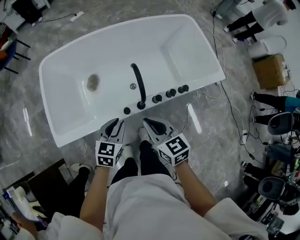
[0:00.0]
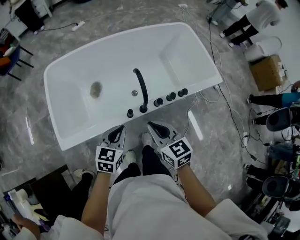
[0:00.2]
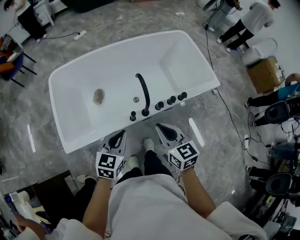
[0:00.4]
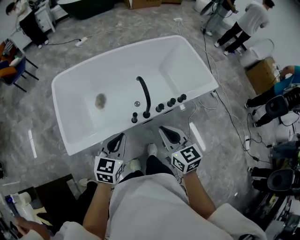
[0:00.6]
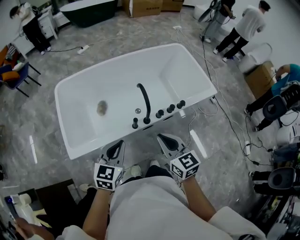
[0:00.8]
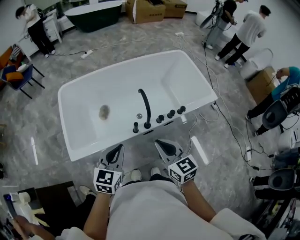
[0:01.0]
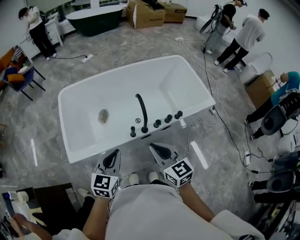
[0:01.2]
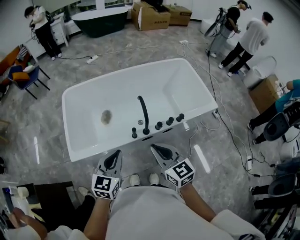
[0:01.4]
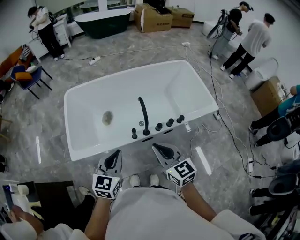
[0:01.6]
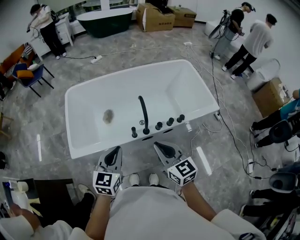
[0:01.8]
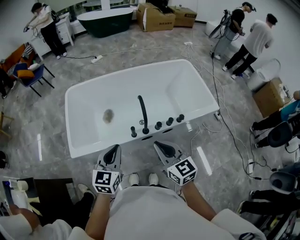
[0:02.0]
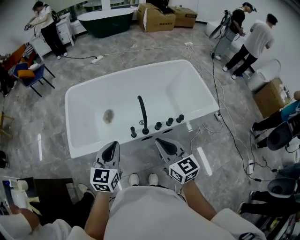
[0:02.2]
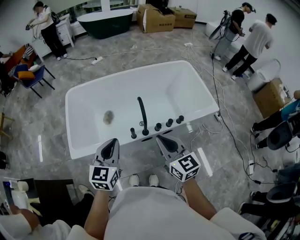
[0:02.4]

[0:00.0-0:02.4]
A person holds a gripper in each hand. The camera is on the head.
0:00.0 to 0:01.2: Both grippers travel together upward and backward, approximately 20 cm.
0:01.2 to 0:02.4: The left gripper travels upward by approximately 5 cm; the right gripper goes some 5 cm to the right.

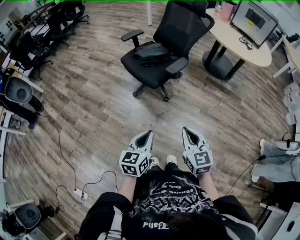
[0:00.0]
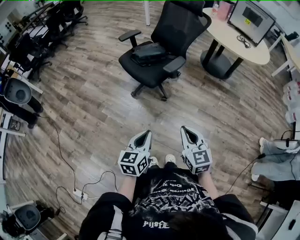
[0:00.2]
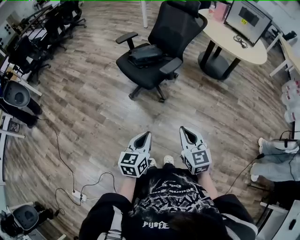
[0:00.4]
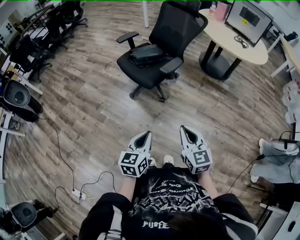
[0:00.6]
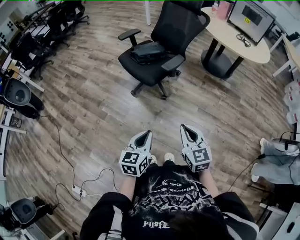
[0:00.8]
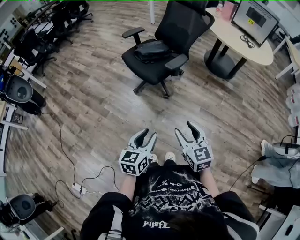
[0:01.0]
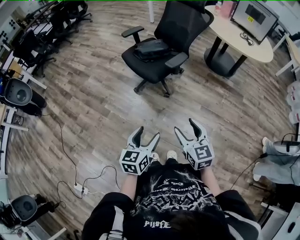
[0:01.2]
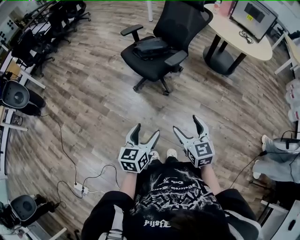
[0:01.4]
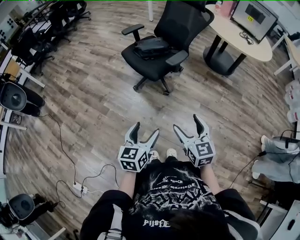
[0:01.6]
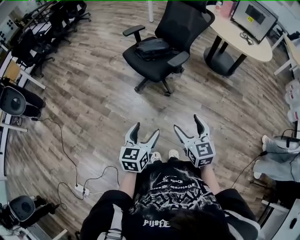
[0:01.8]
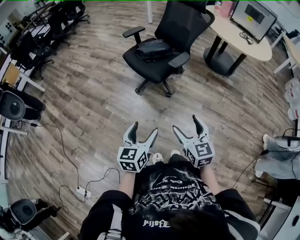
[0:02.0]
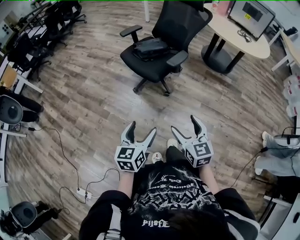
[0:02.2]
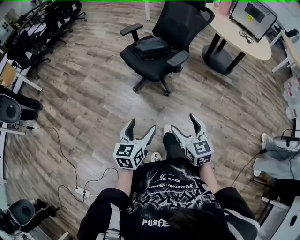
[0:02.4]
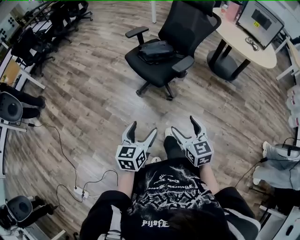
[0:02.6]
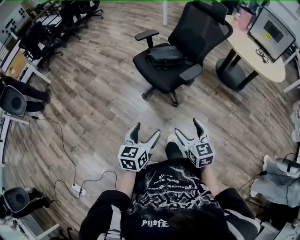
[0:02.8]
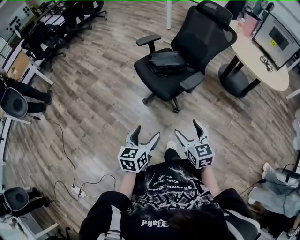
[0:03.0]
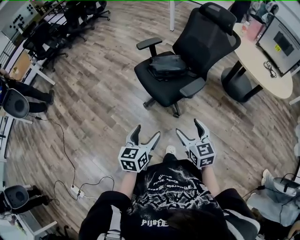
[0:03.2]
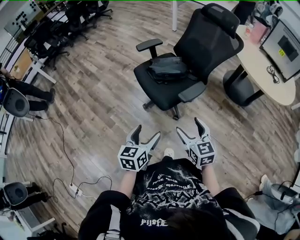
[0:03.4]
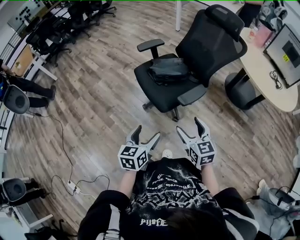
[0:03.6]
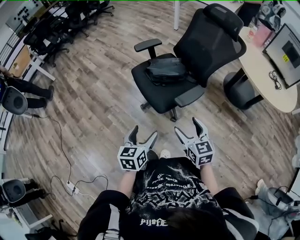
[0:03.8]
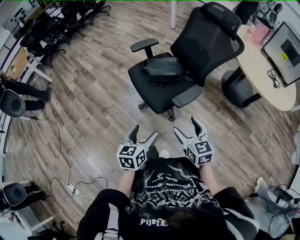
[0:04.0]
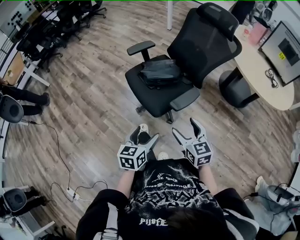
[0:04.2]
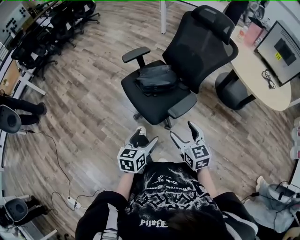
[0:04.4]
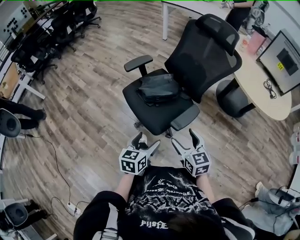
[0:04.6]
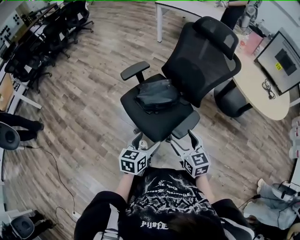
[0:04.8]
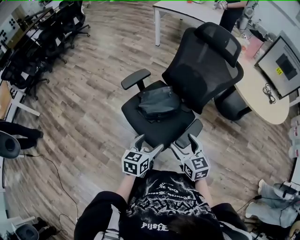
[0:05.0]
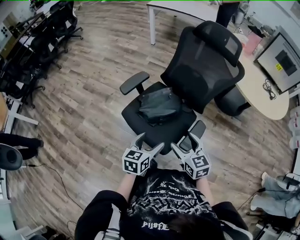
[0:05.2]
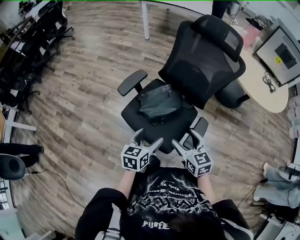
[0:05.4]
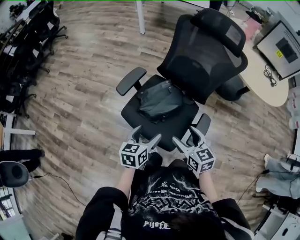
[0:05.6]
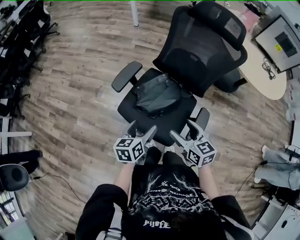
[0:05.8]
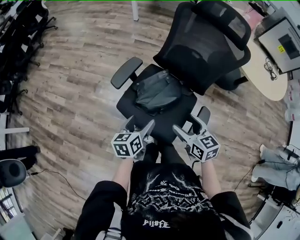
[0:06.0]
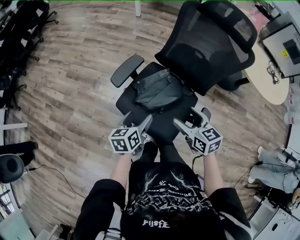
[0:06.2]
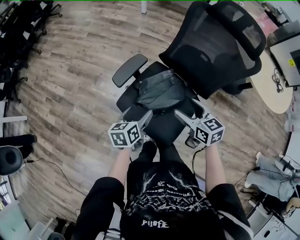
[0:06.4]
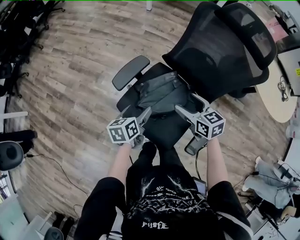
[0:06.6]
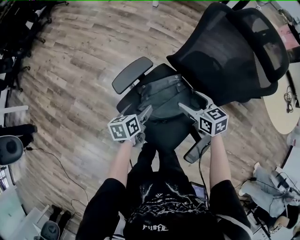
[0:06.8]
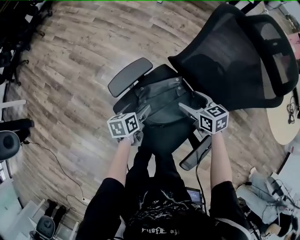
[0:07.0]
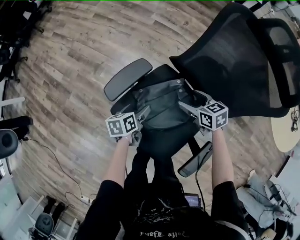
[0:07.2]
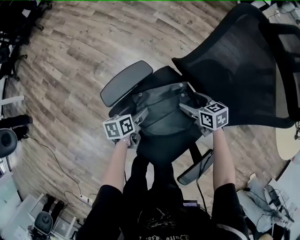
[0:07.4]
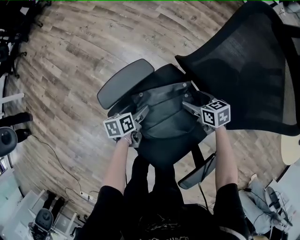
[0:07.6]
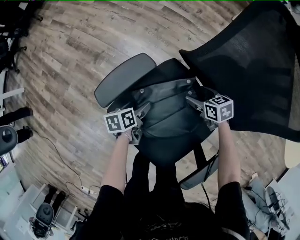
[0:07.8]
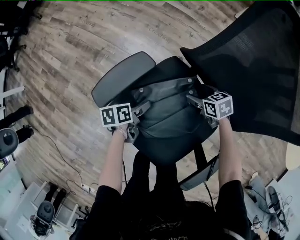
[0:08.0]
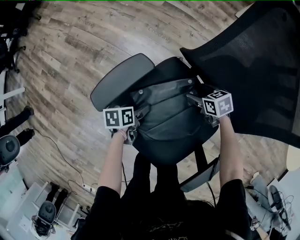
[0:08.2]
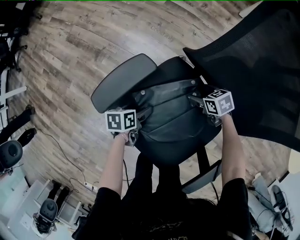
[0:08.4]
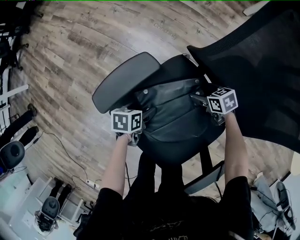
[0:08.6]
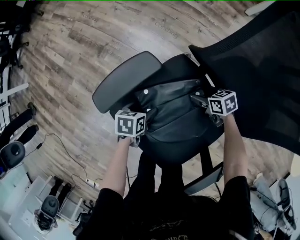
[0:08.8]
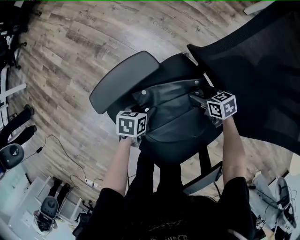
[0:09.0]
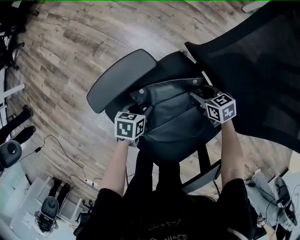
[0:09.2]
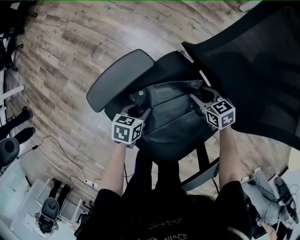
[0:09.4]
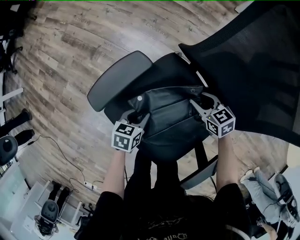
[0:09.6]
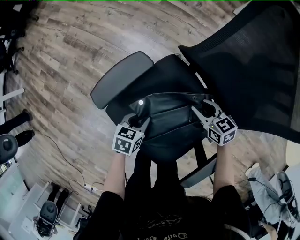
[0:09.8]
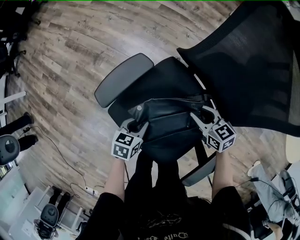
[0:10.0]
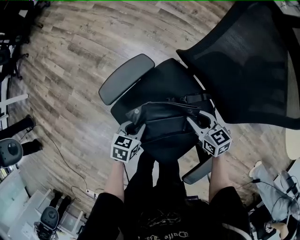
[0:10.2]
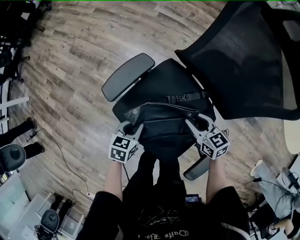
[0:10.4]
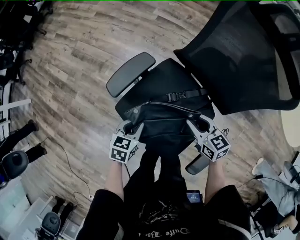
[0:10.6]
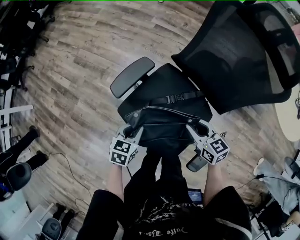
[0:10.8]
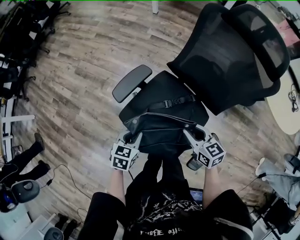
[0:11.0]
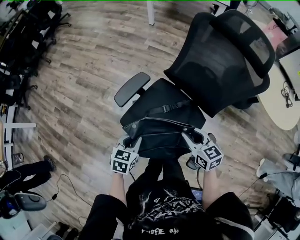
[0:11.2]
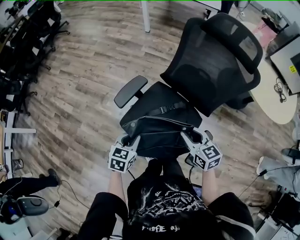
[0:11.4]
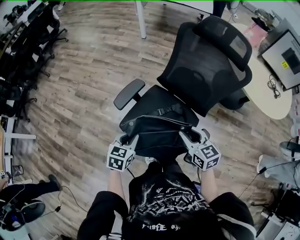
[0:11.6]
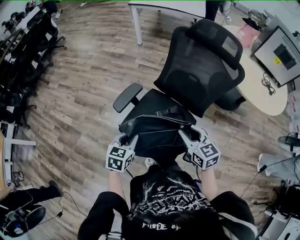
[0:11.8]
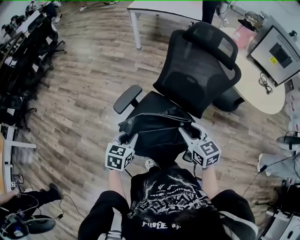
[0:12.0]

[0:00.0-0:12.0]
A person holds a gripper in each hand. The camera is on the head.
0:00.0 to 0:01.6: The right gripper opens its fingers; the left gripper opens up.
0:01.6 to 0:03.0: The two grippers go approximately 20 cm forward.
0:03.0 to 0:04.4: The left gripper shifts about 25 cm forward and to the right. The right gripper heads forward, covering approximately 20 cm.
0:04.4 to 0:06.0: The two grippers go about 35 cm forward and to the left. The right gripper turns by some 20 degrees.
0:06.0 to 0:07.6: Both grippers move downward and forward, roughly 40 cm. The left gripper changes its angle by roughly 30 degrees. Meanwhile the right gripper changes its angle by roughly 40 degrees.
0:07.6 to 0:09.0: The right gripper moves downward, approximately 15 cm, while the left gripper moves downward, about 10 cm, and rotates approximately 30 degrees.
0:09.0 to 0:10.4: The two grippers go approximately 20 cm upward. The left gripper changes its angle by about 30 degrees, and closes its fingers. The right gripper swivels some 30 degrees.
0:10.4 to 0:12.0: The left gripper travels upward by roughly 30 cm, and turns by about 20 degrees; the right gripper moves upward and backward, about 35 cm, and turns by some 30 degrees.

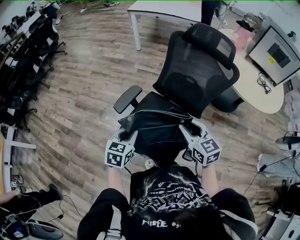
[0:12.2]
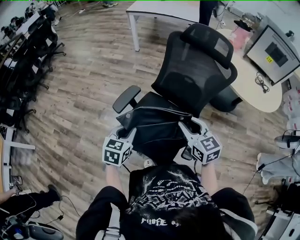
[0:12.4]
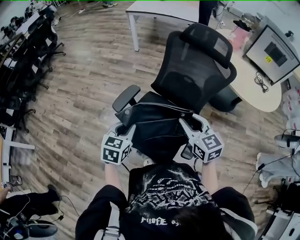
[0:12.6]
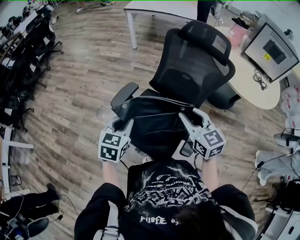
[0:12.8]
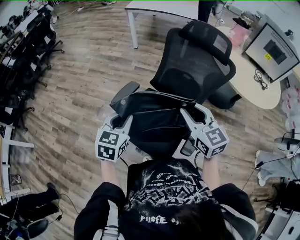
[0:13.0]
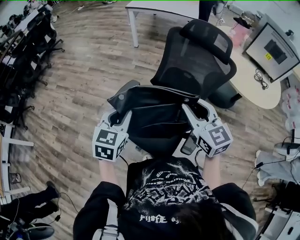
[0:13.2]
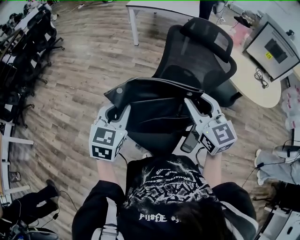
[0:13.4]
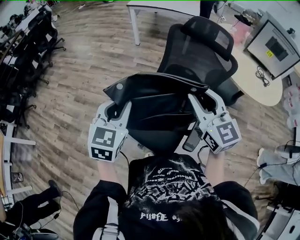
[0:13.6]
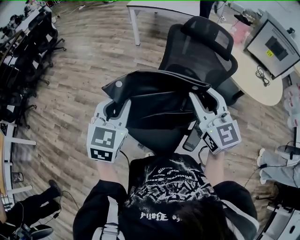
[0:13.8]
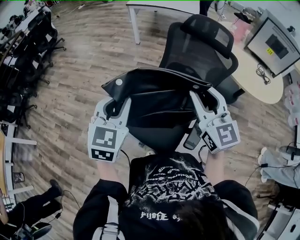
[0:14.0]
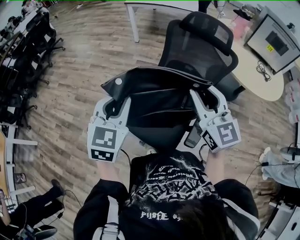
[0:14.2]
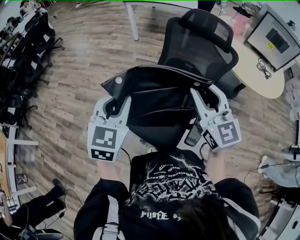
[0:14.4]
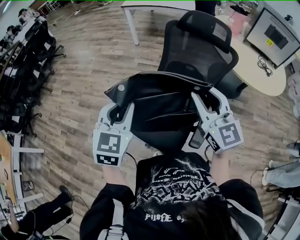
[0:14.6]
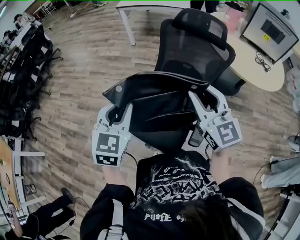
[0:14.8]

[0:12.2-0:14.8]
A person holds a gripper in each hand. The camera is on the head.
0:12.2 to 0:13.4: The grippers both shift upward by some 15 cm.
0:13.4 to 0:14.8: The grippers make only small movements.

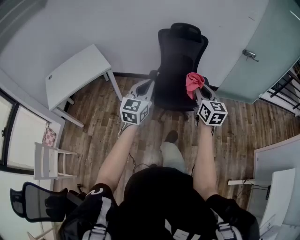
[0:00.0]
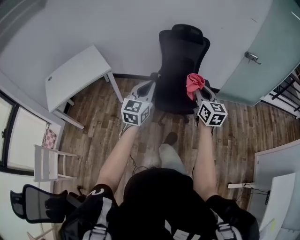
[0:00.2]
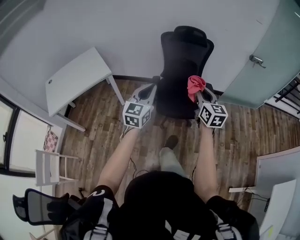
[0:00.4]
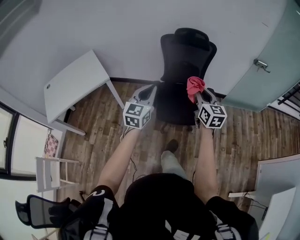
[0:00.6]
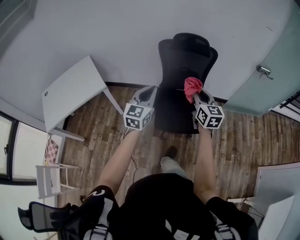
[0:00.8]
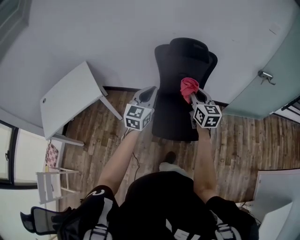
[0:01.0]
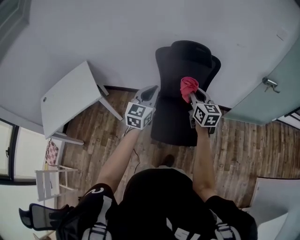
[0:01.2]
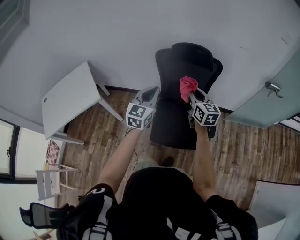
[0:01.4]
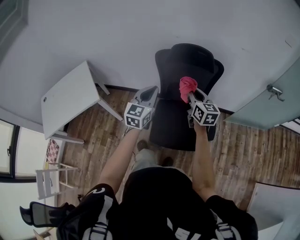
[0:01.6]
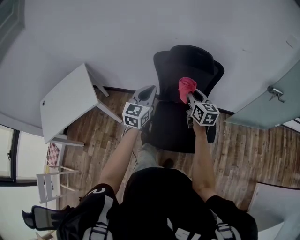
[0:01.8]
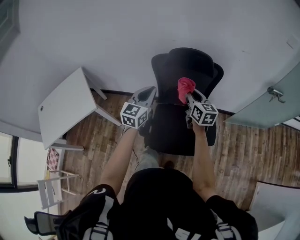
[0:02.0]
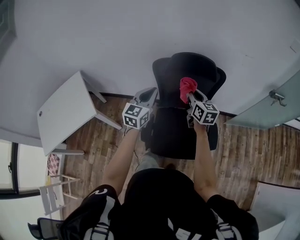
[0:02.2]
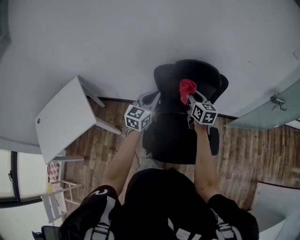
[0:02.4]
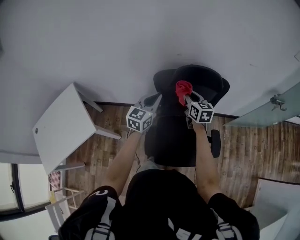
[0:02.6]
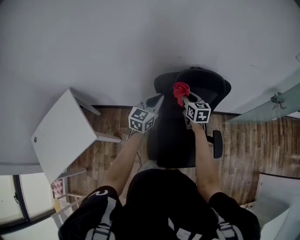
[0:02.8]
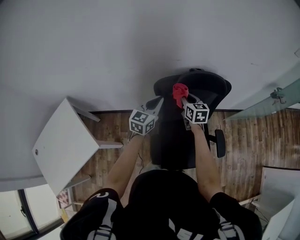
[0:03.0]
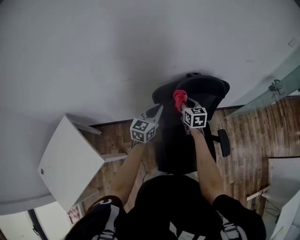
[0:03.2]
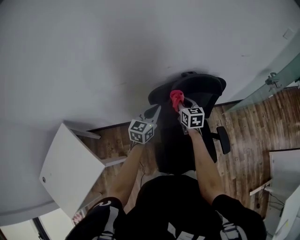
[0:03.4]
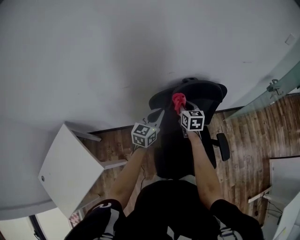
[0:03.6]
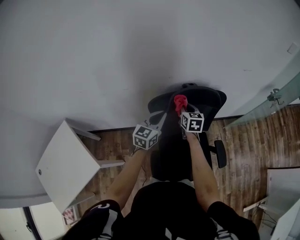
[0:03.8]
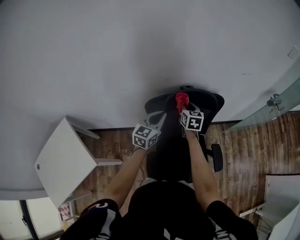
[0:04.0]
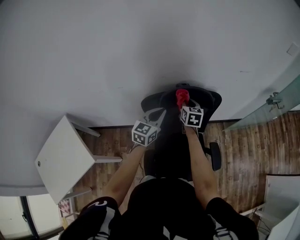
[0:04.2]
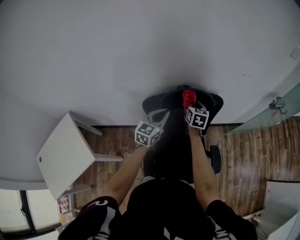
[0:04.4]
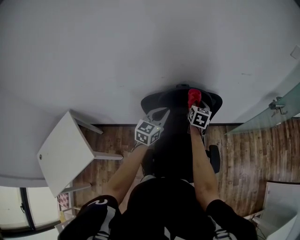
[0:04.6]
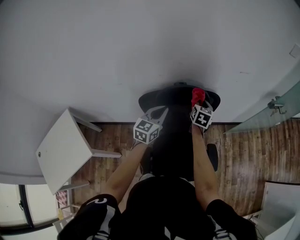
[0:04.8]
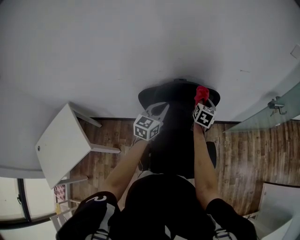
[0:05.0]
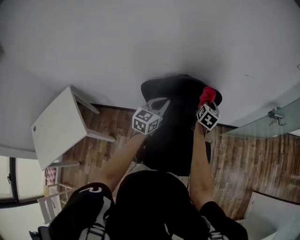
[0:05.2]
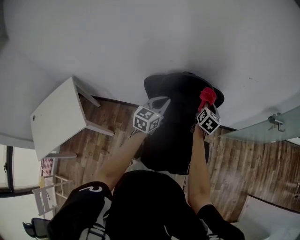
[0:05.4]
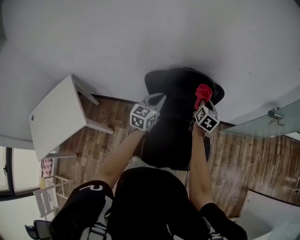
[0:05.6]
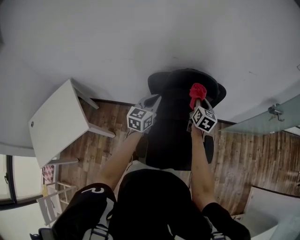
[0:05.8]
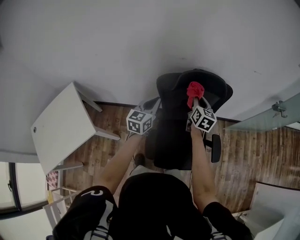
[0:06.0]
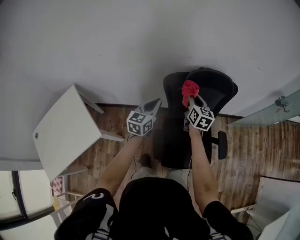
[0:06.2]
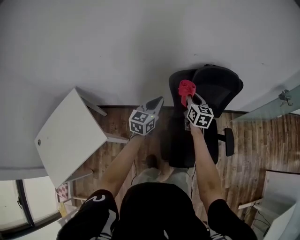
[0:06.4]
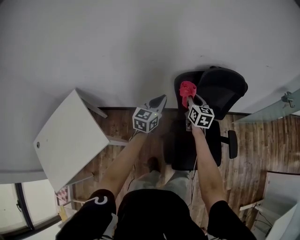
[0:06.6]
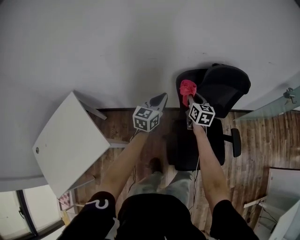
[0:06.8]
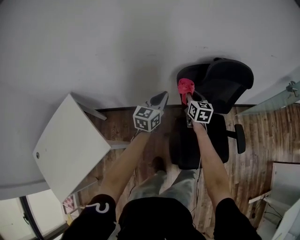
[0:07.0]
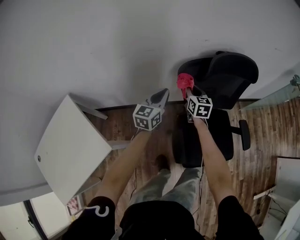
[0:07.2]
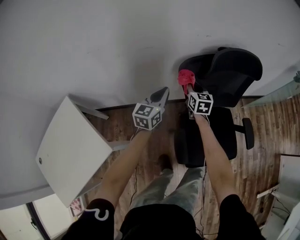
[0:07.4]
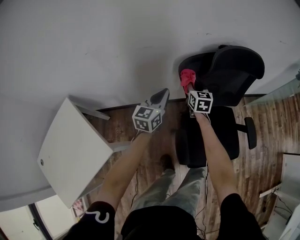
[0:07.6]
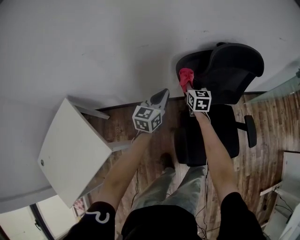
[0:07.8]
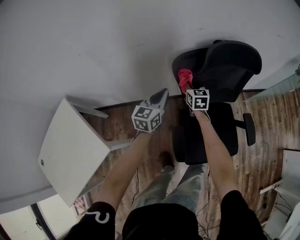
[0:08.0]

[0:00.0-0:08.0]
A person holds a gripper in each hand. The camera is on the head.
0:00.0 to 0:01.6: The two grippers travel together, forward, approximately 50 cm.
0:01.6 to 0:03.2: The left gripper moves forward, some 30 cm, and swivels some 30 degrees; the right gripper is displaced forward, to the left and downward by approximately 30 cm, and swivels about 20 degrees.
0:03.2 to 0:04.8: The left gripper travels to the right by some 15 cm; the right gripper shifts about 20 cm to the right and forward.
0:04.8 to 0:06.4: The grippers both shift to the left and backward by some 25 cm.
0:06.4 to 0:08.0: The two grippers go about 15 cm downward and forward.
